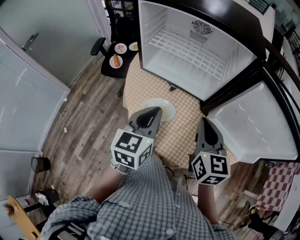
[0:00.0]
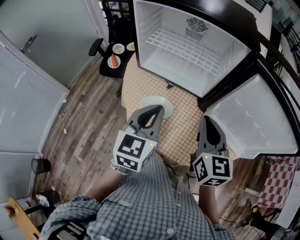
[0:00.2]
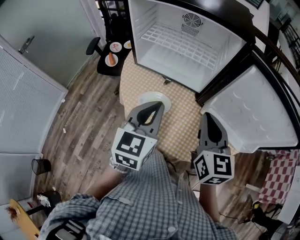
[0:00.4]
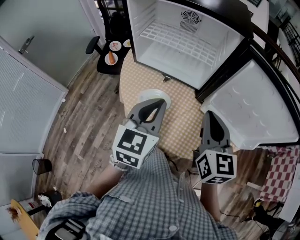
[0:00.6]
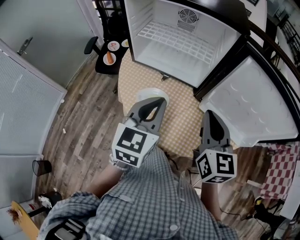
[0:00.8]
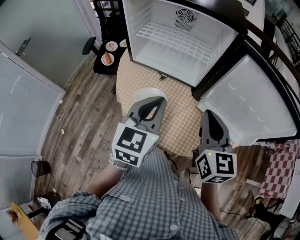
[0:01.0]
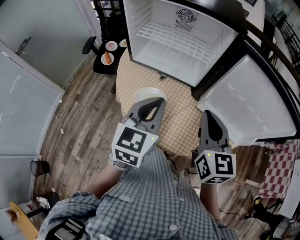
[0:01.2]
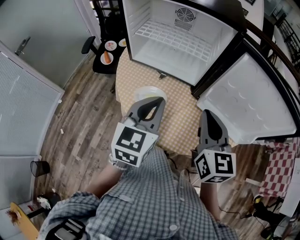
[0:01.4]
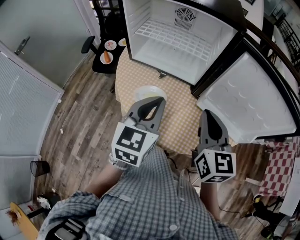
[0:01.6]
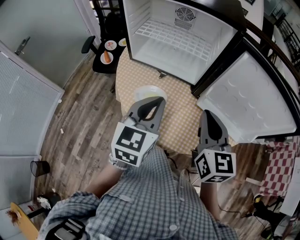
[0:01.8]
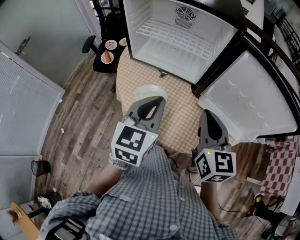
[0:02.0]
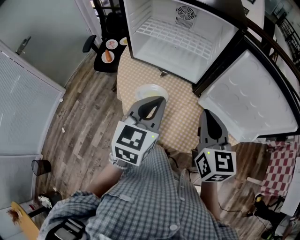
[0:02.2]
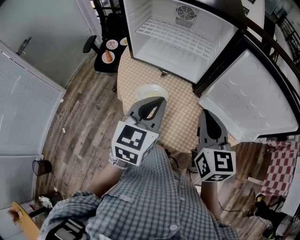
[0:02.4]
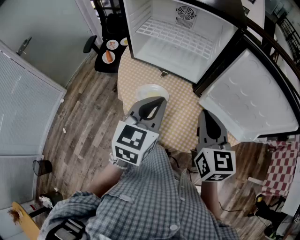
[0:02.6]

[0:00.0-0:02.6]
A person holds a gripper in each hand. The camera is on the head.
0:00.0 to 0:01.2: The right gripper shifts by some 5 cm. Meanwhile the left gripper heads to the right, covering some 5 cm.
0:01.2 to 0:02.6: The grippers stay close to where they were, moving slightly.

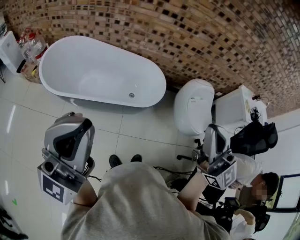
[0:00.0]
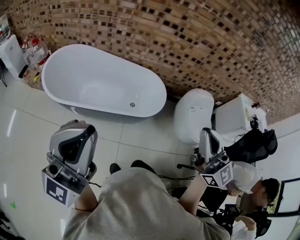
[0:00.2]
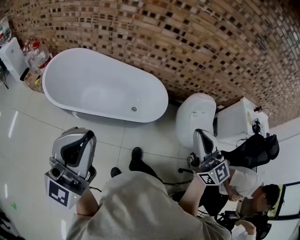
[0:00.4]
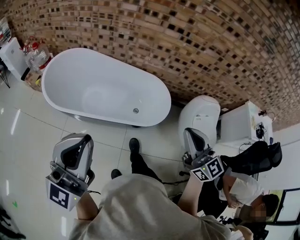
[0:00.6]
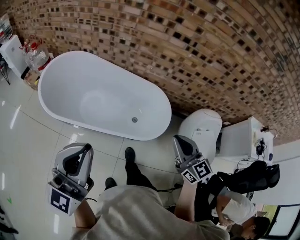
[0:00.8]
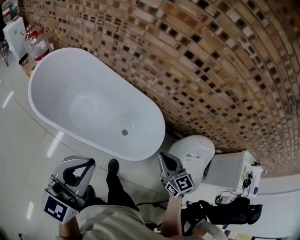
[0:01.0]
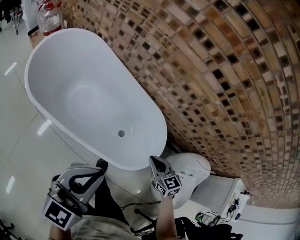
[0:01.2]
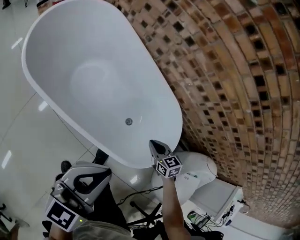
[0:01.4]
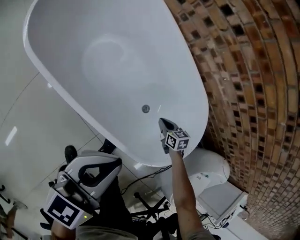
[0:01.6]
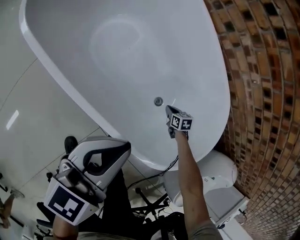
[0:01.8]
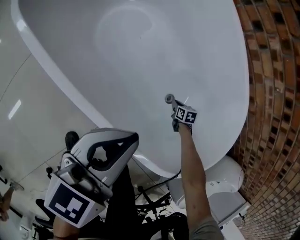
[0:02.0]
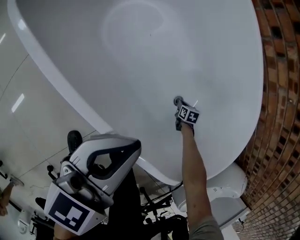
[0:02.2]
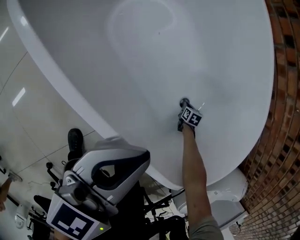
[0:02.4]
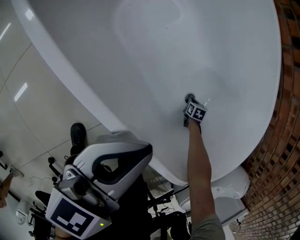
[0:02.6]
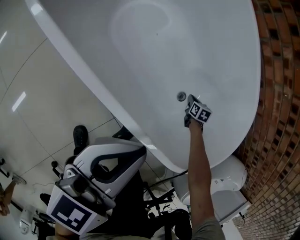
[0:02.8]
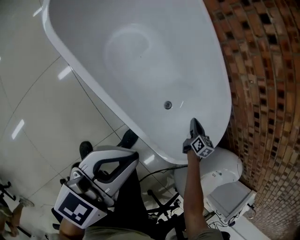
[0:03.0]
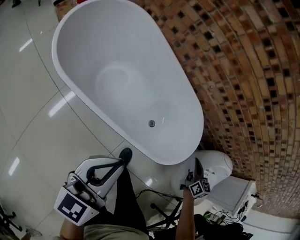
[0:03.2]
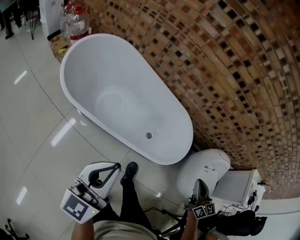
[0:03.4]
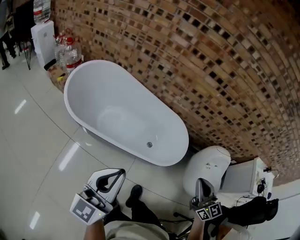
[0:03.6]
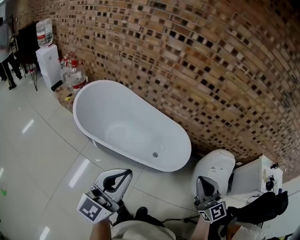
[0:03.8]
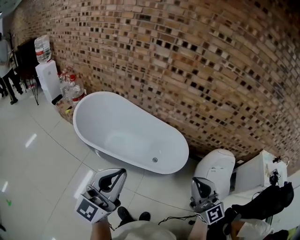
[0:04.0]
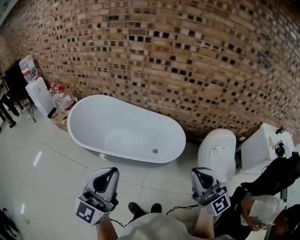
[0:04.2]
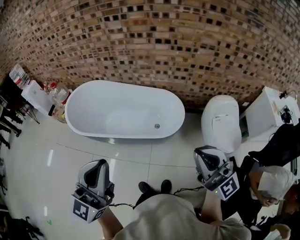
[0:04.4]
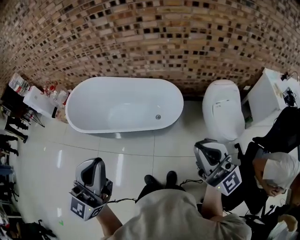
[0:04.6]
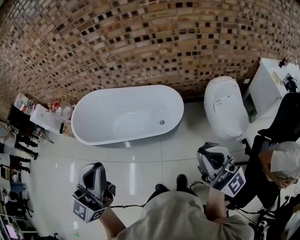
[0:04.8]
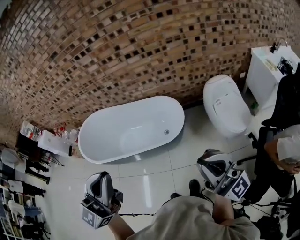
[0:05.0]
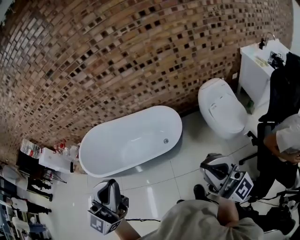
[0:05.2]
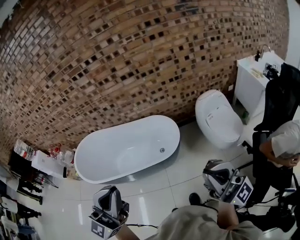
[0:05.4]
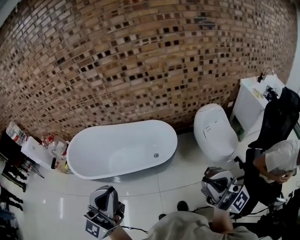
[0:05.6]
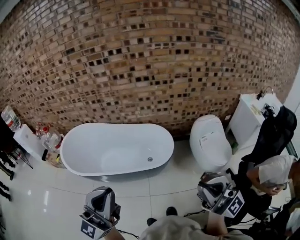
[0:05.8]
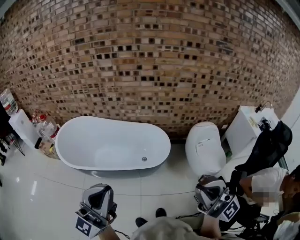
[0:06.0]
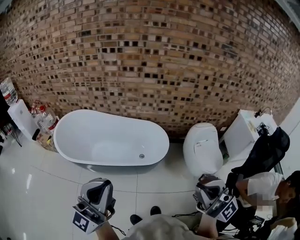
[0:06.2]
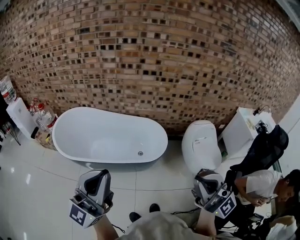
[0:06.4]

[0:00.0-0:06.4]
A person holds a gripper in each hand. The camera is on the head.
0:00.0 to 0:01.6: The right gripper is displaced downward by some 80 cm, and angles its fingers downward, by some 70 degrees. The left gripper moves downward, about 50 cm, and points its fingers some 40 degrees further downward.
0:01.6 to 0:03.2: The left gripper reaches approximately 25 cm downward, then returns; the right gripper shifts approximately 30 cm upward, and swivels some 40 degrees.
0:03.2 to 0:04.8: The right gripper goes some 70 cm upward and backward, and tips its fingers upward by about 60 degrees. Meanwhile the left gripper travels upward, backward and to the right by approximately 50 cm, and swivels about 40 degrees.
0:04.8 to 0:06.4: The left gripper travels to the left by roughly 10 cm; the right gripper travels to the left, backward and upward by some 15 cm.

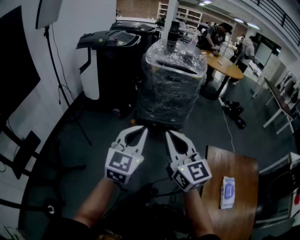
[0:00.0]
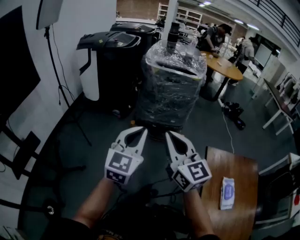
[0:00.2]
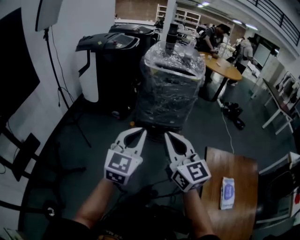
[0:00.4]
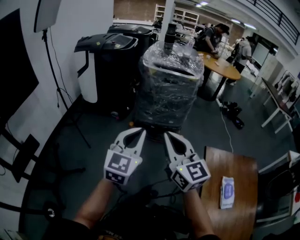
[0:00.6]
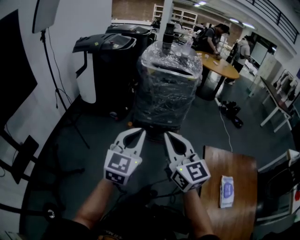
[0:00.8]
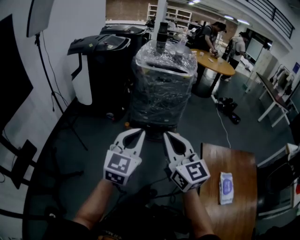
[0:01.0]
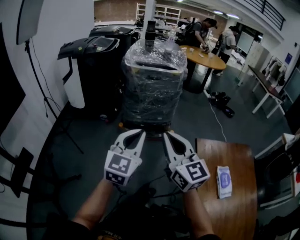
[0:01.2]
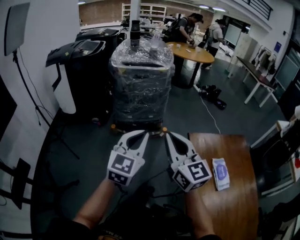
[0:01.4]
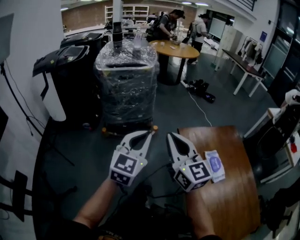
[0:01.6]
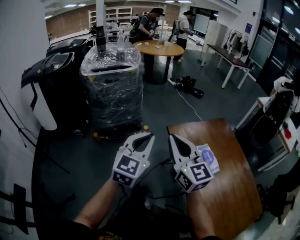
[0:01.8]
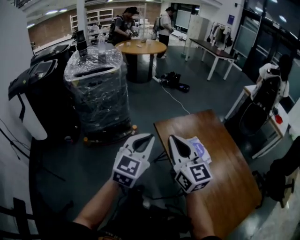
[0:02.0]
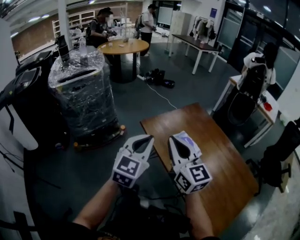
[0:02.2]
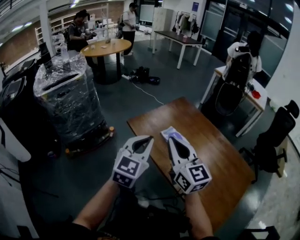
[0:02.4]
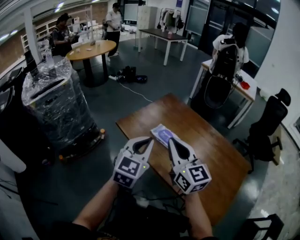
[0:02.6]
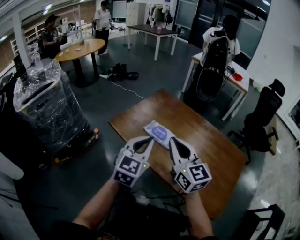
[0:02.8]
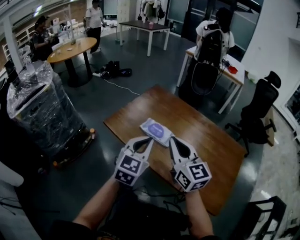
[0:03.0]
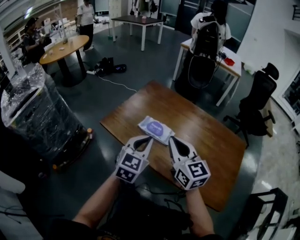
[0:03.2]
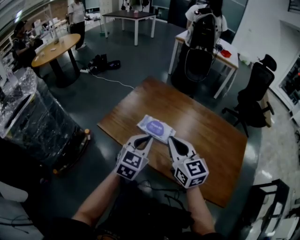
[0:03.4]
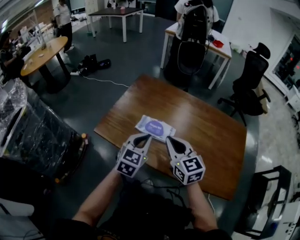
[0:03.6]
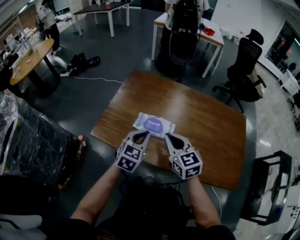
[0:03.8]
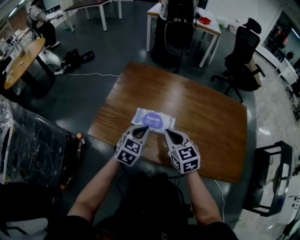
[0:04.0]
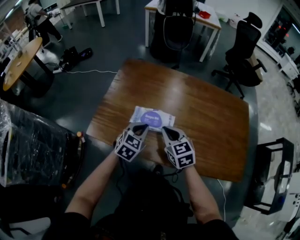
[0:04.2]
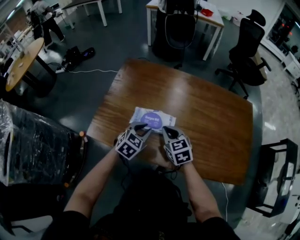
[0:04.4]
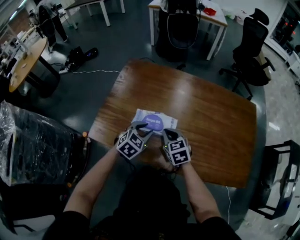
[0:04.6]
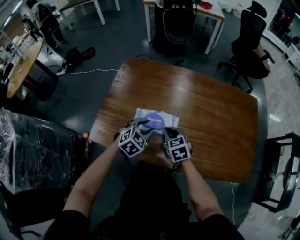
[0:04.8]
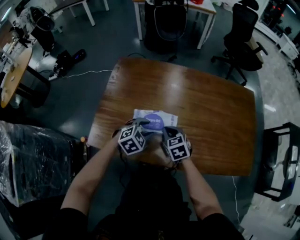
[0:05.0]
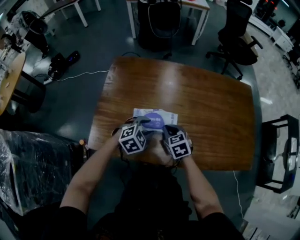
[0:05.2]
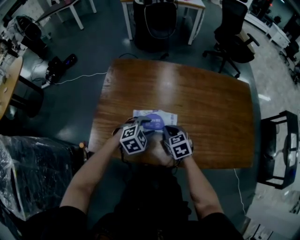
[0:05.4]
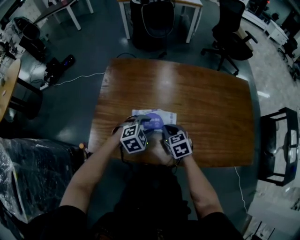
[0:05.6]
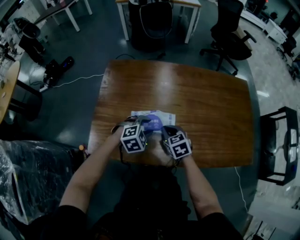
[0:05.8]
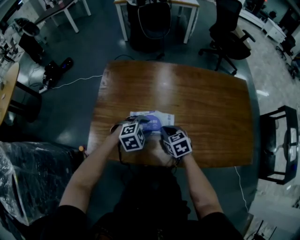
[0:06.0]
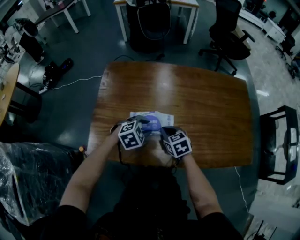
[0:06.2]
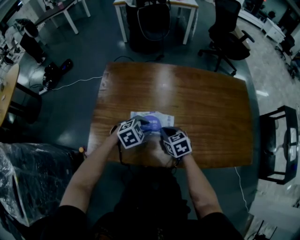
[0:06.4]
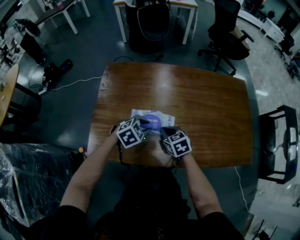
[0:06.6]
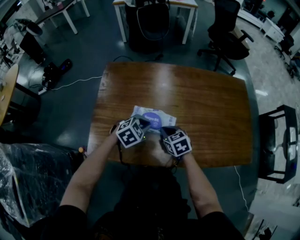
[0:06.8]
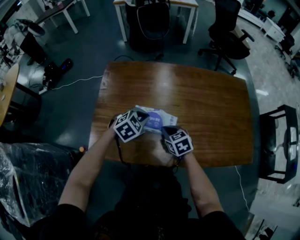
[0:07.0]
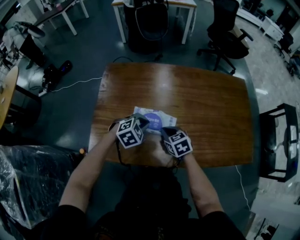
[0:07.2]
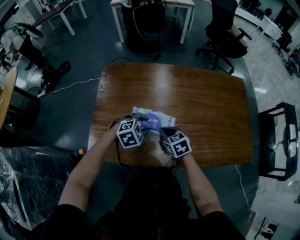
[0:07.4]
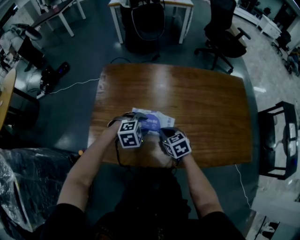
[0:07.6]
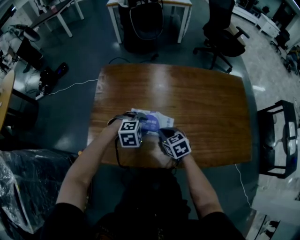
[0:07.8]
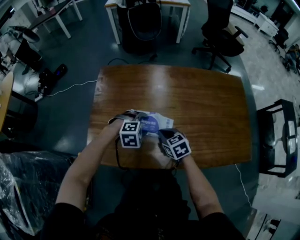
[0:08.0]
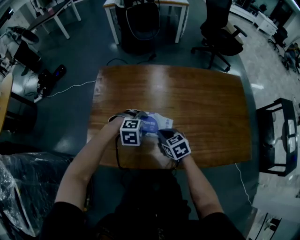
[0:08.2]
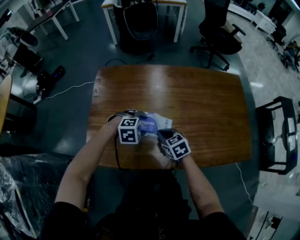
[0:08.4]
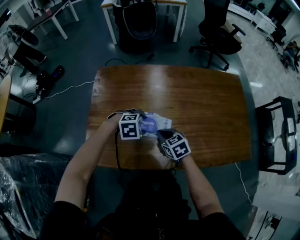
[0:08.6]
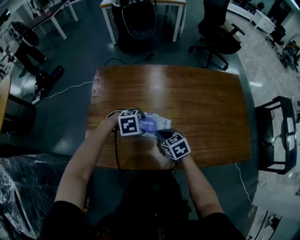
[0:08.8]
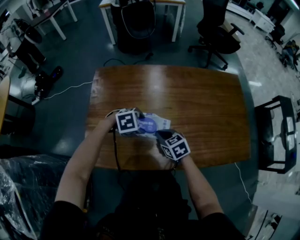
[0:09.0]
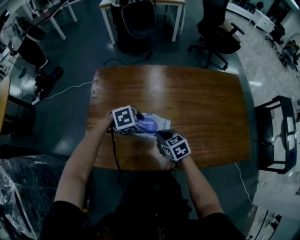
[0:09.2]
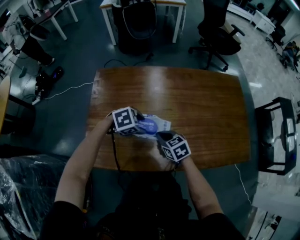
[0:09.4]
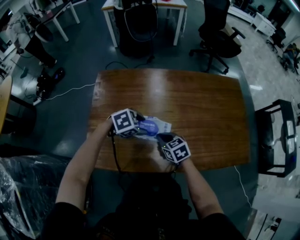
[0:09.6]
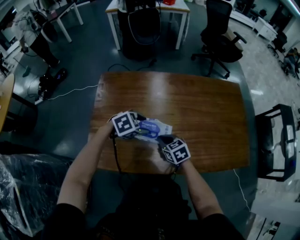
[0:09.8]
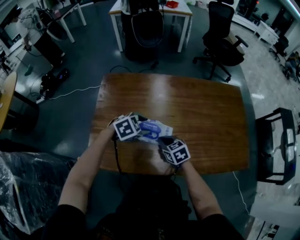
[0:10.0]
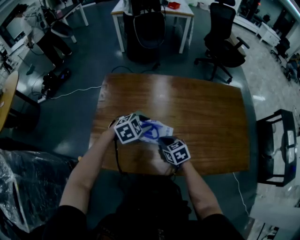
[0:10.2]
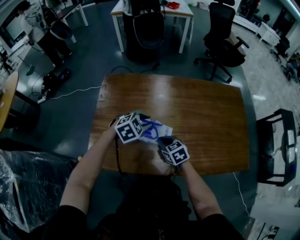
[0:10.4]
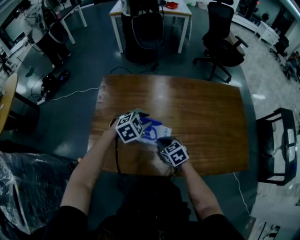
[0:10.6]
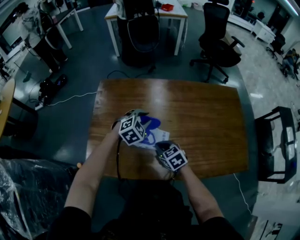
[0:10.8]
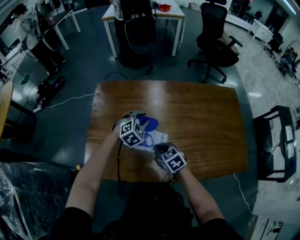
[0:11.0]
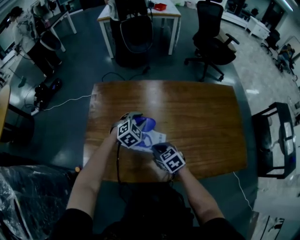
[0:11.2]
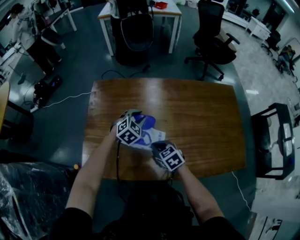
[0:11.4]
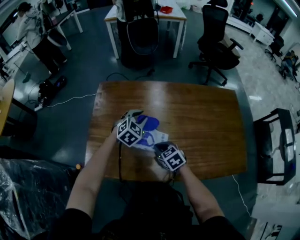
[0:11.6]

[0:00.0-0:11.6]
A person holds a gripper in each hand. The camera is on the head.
0:00.0 to 0:01.4: Both grippers travel together to the right, roughly 10 cm.
0:01.4 to 0:02.8: The left gripper changes place by some 35 cm, and rotates about 50 degrees, while the right gripper moves approximately 35 cm, and changes its angle by approximately 50 degrees.
0:02.8 to 0:04.4: Both grippers move downward, roughly 25 cm. The right gripper tilts its fingers some 30 degrees downward. Meanwhile the left gripper changes its angle by some 50 degrees.
0:04.4 to 0:05.8: The left gripper turns by approximately 40 degrees, and opens its fingers, while the right gripper moves downward, roughly 5 cm.
0:05.8 to 0:07.2: The left gripper closes.
0:07.2 to 0:08.8: The left gripper swivels about 20 degrees, and opens up.
0:08.8 to 0:10.2: The left gripper travels upward by roughly 5 cm, turns by approximately 30 degrees, and closes its fingers.
0:10.2 to 0:11.6: The left gripper heads forward, covering roughly 10 cm, and swivels about 20 degrees.

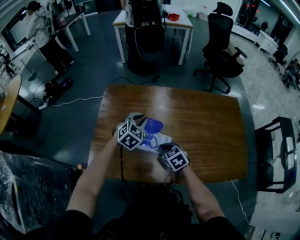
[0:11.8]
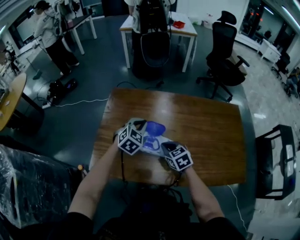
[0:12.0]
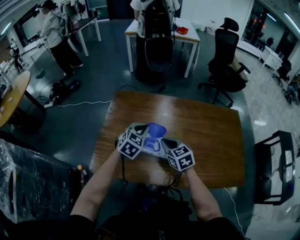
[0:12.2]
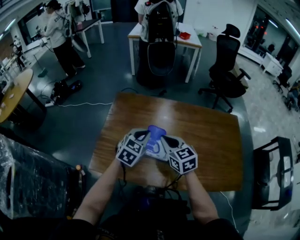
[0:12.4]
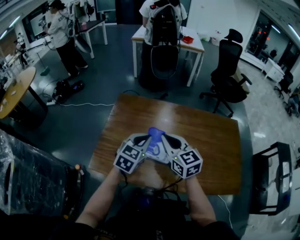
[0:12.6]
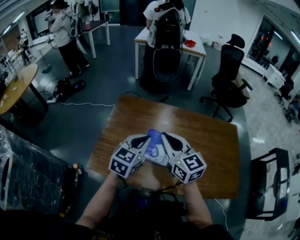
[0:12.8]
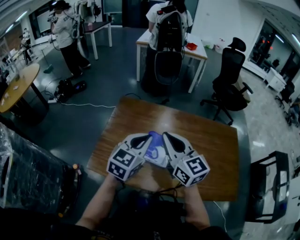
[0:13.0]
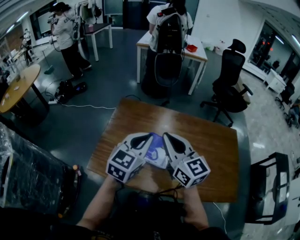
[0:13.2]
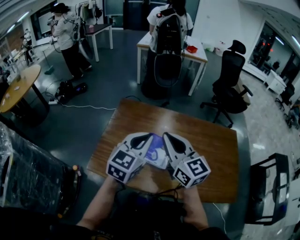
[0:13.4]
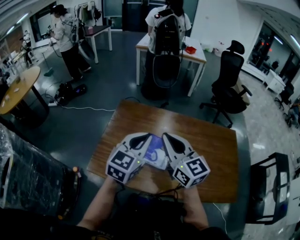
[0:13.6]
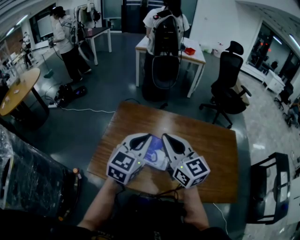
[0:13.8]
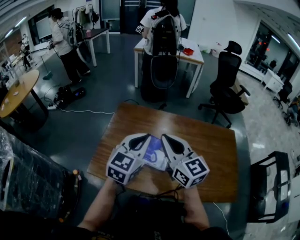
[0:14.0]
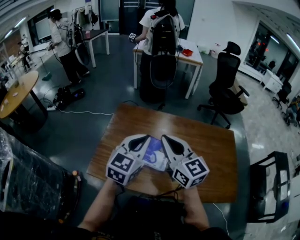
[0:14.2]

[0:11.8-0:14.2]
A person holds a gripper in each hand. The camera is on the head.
0:11.8 to 0:13.0: The right gripper moves upward, some 30 cm, and tips its fingers upward by roughly 50 degrees. The left gripper moves upward and backward, roughly 20 cm, and turns by approximately 30 degrees.
0:13.0 to 0:14.2: There are only small adjustments of the grippers.
